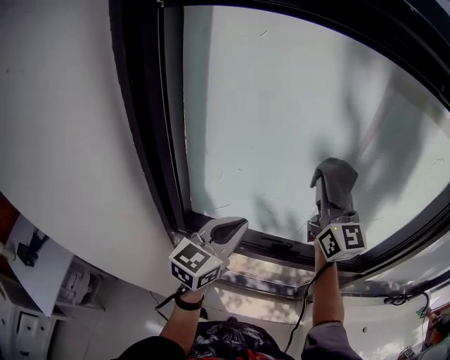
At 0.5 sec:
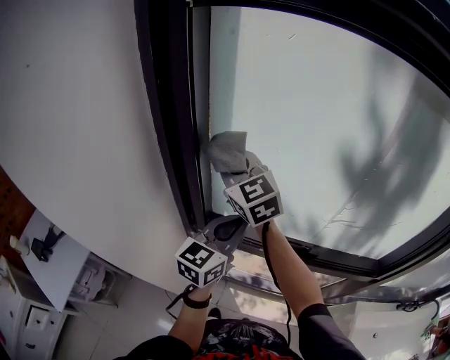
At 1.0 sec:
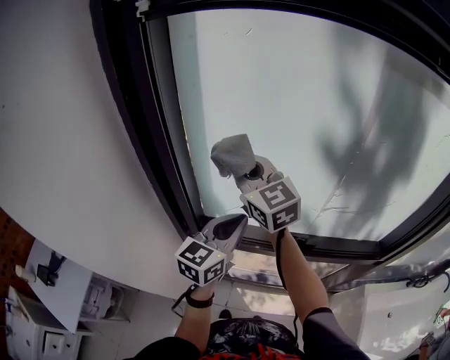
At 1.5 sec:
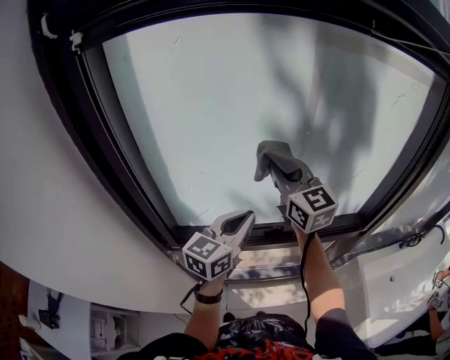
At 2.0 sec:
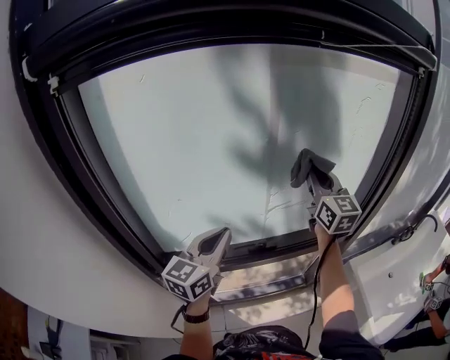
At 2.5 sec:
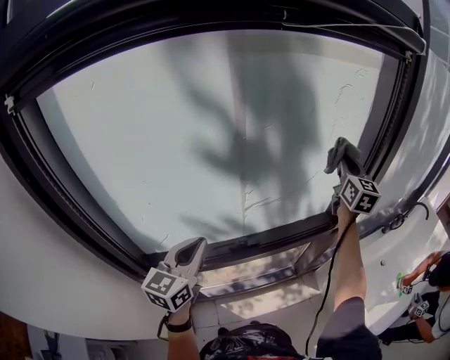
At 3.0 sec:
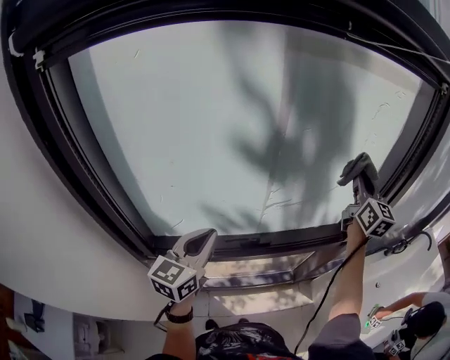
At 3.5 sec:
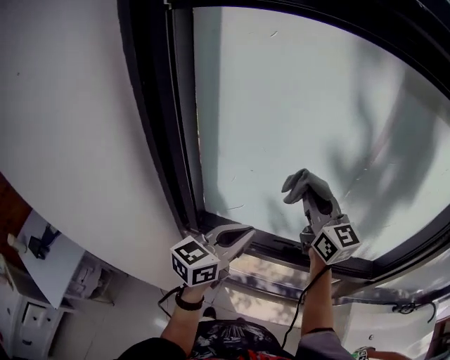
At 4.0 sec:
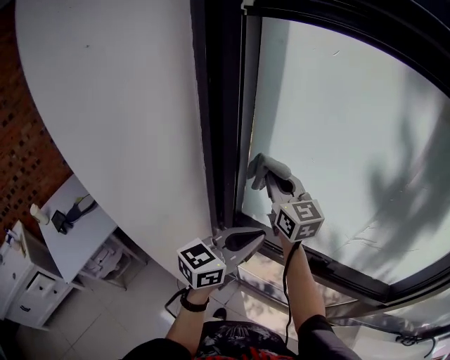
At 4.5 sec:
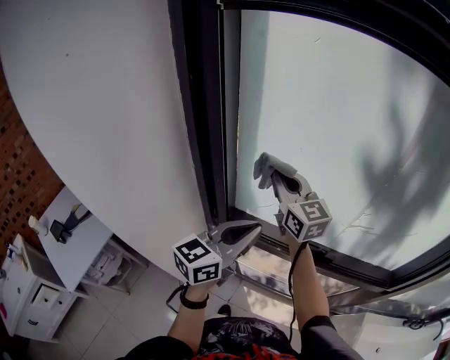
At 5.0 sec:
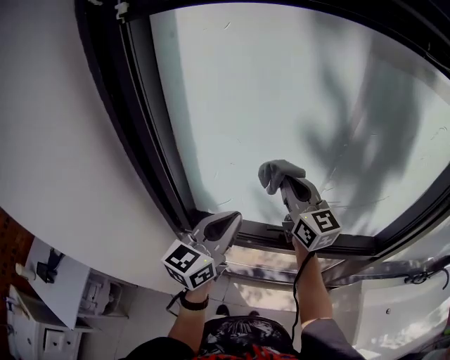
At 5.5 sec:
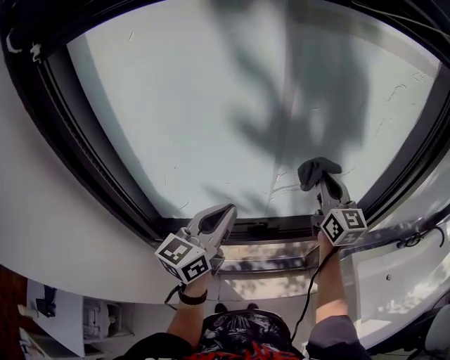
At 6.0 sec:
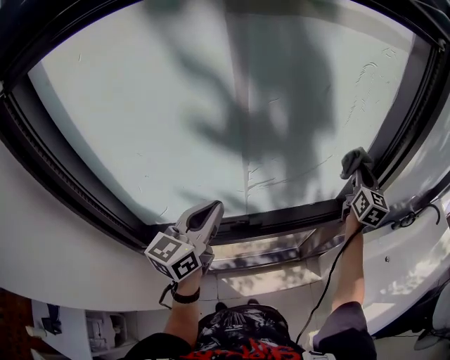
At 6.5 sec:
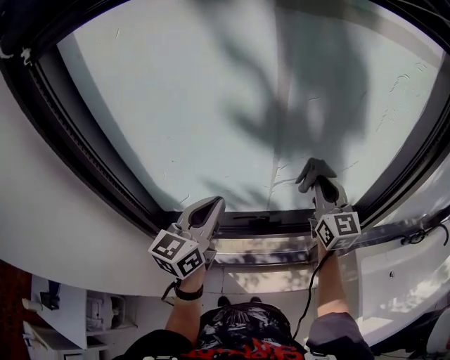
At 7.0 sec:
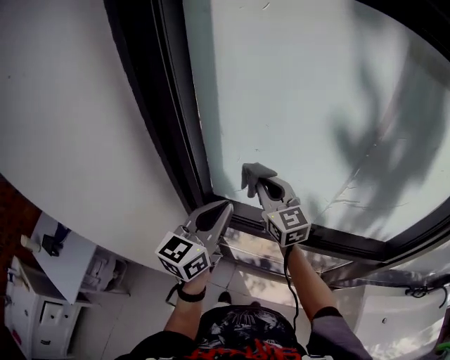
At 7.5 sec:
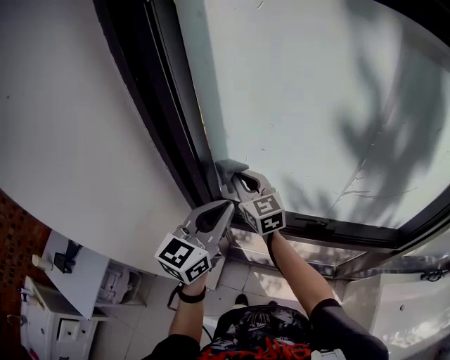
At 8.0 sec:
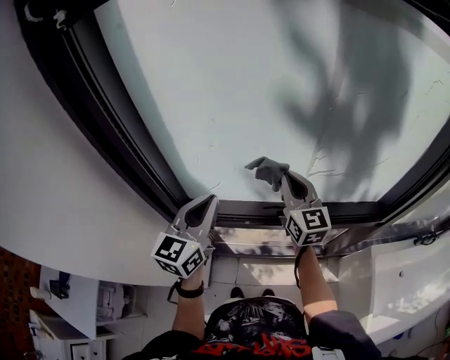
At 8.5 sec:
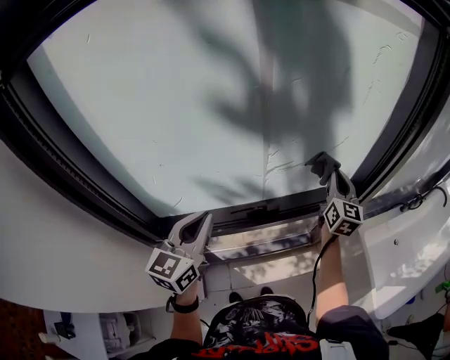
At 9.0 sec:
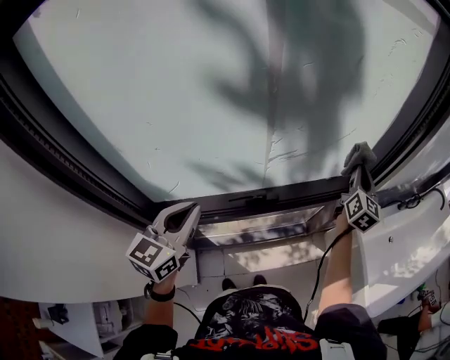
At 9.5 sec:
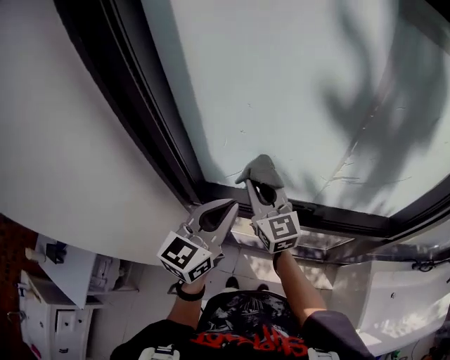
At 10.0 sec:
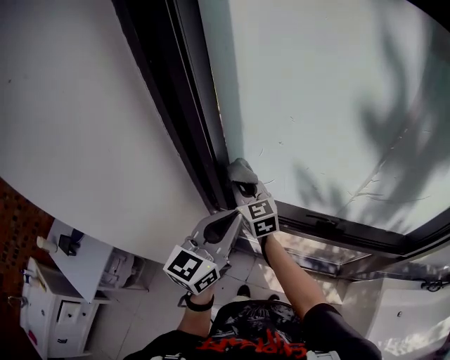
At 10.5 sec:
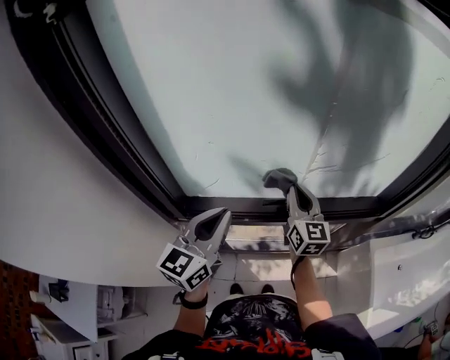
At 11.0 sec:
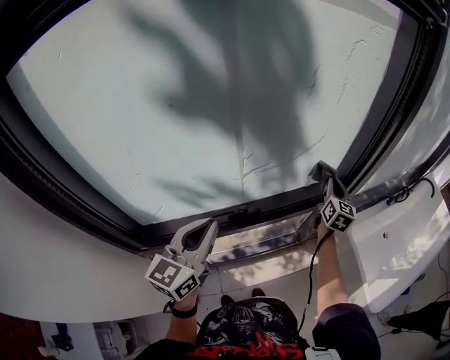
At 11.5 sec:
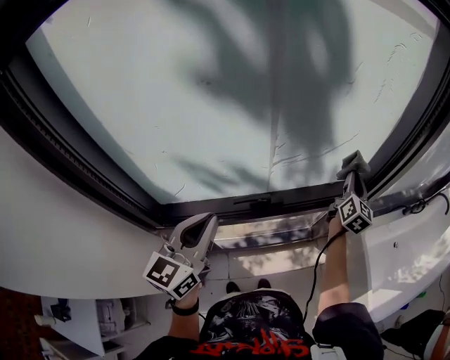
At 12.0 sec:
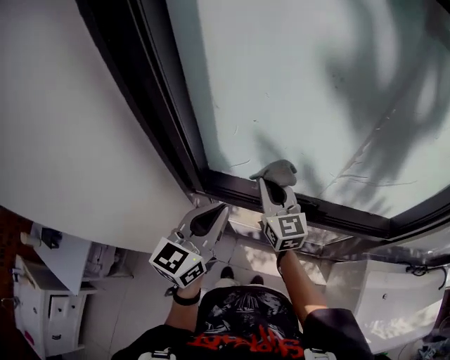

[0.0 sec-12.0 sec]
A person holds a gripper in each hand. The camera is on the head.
0.0 sec to 2.0 sec: The right gripper changes its angle by roughly 20 degrees; the left gripper changes place by some 5 cm.
2.0 sec to 4.0 sec: The left gripper changes place by some 15 cm. Meanwhile the right gripper shifts by about 40 cm, and turns by about 50 degrees.
4.0 sec to 6.0 sec: The right gripper ends up roughly 70 cm from where it was, and turns by approximately 70 degrees. The left gripper changes place by approximately 20 cm.
6.0 sec to 8.0 sec: The left gripper ends up some 15 cm from where it was, and swivels some 20 degrees, while the right gripper changes its angle by about 40 degrees.
8.0 sec to 10.0 sec: The left gripper changes place by about 10 cm, while the right gripper changes place by about 30 cm, and rotates roughly 30 degrees.

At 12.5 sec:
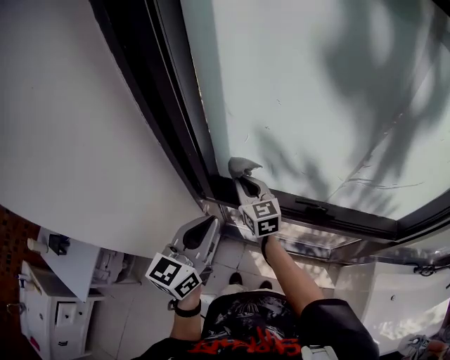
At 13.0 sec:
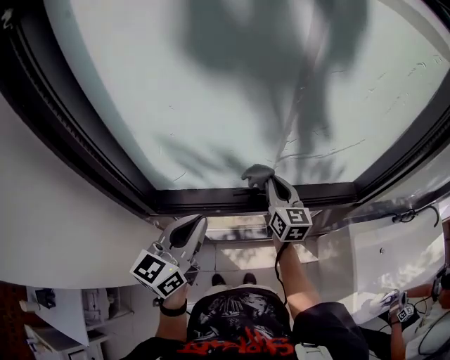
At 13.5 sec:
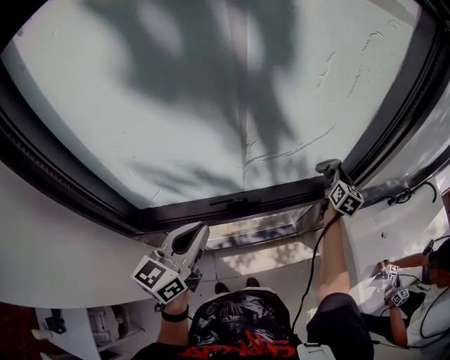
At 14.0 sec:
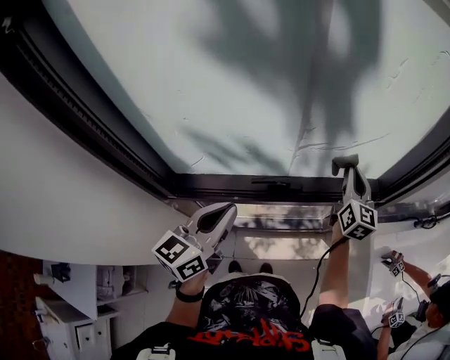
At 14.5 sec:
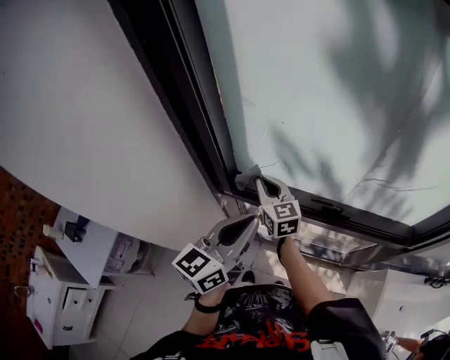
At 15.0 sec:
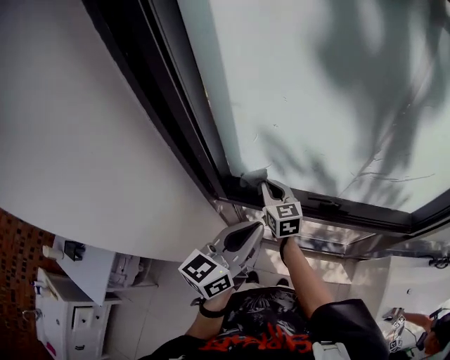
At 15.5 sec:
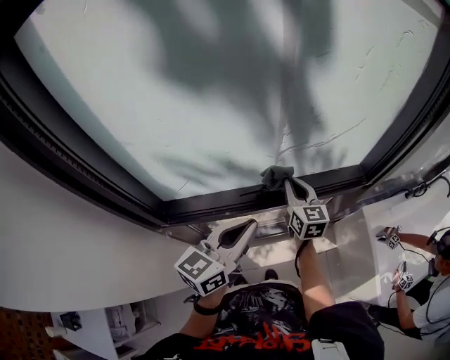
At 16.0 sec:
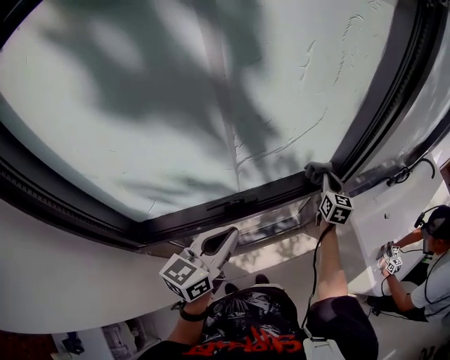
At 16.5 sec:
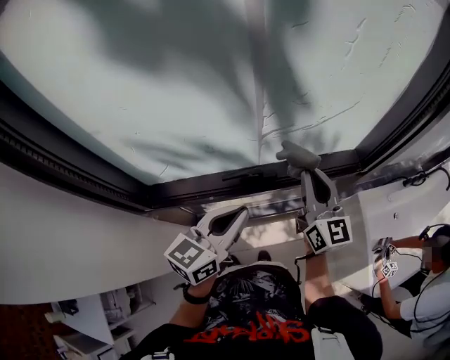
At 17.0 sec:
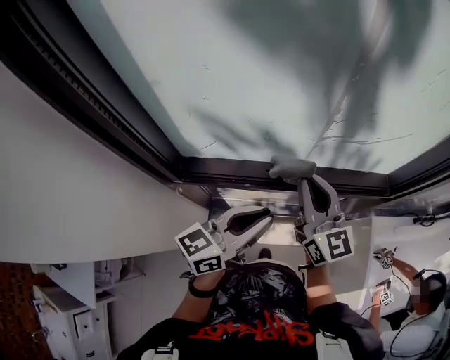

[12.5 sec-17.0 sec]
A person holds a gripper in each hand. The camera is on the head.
12.5 sec to 14.5 sec: The right gripper moves about 5 cm upward and comes back.
14.5 sec to 17.0 sec: The right gripper changes its angle by approximately 30 degrees. Meanwhile the left gripper changes place by approximately 15 cm, and rotates some 30 degrees.

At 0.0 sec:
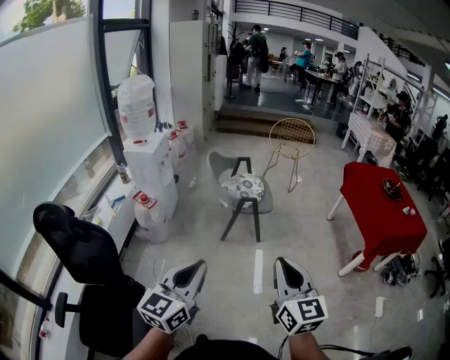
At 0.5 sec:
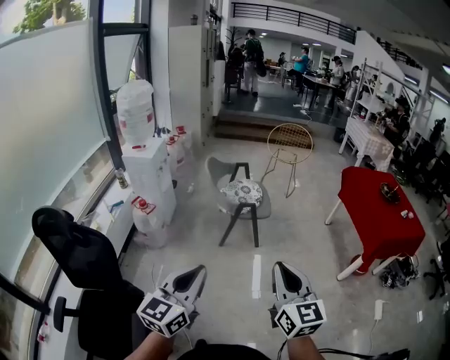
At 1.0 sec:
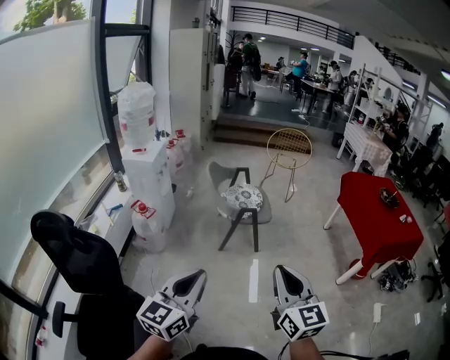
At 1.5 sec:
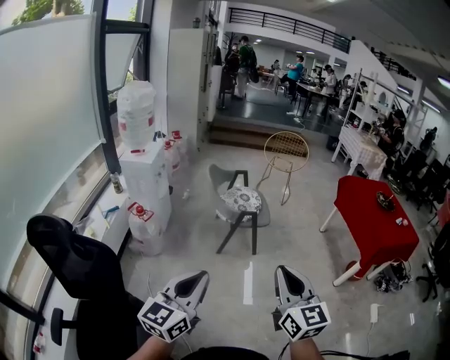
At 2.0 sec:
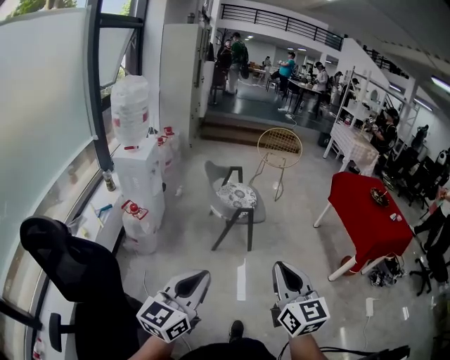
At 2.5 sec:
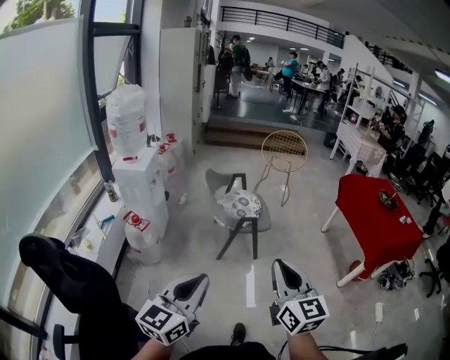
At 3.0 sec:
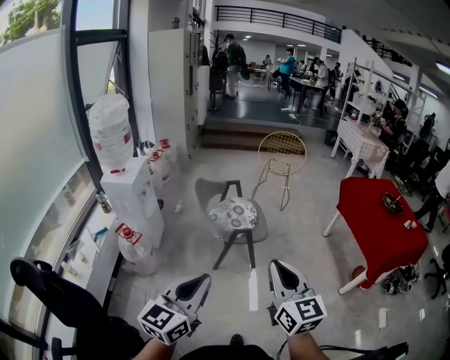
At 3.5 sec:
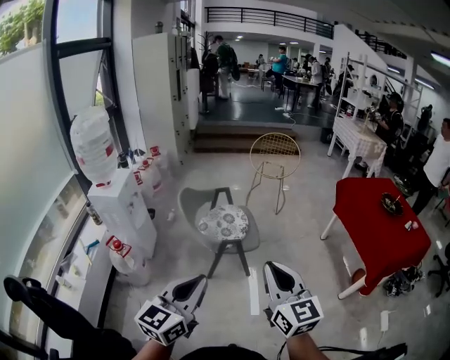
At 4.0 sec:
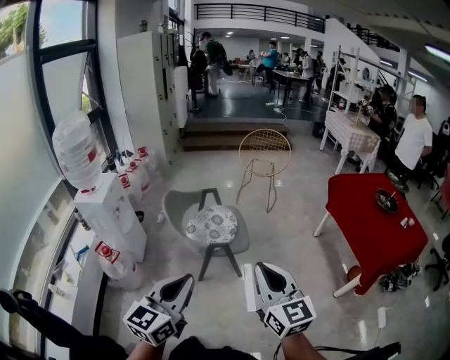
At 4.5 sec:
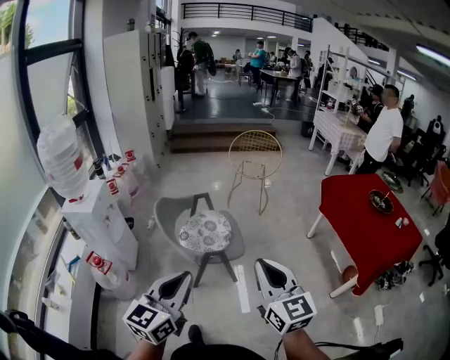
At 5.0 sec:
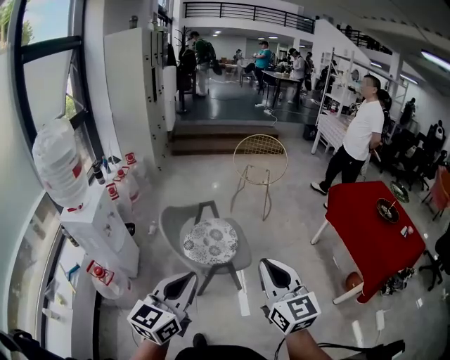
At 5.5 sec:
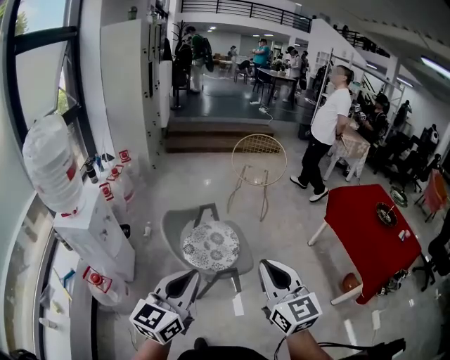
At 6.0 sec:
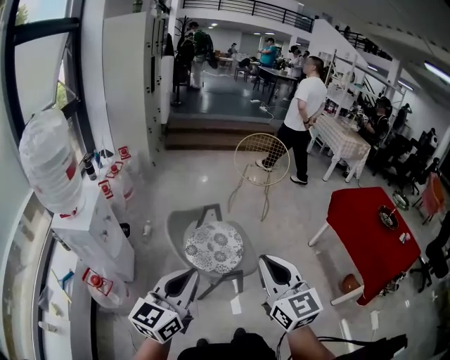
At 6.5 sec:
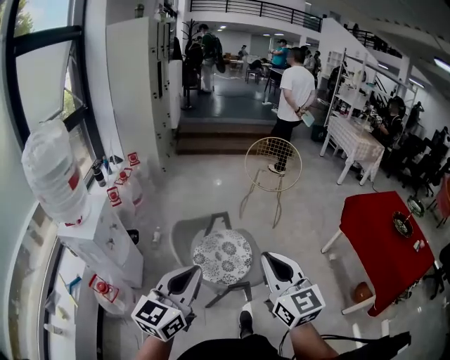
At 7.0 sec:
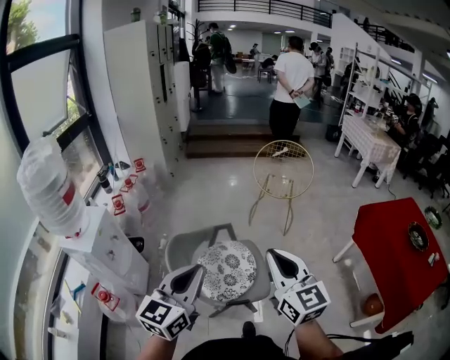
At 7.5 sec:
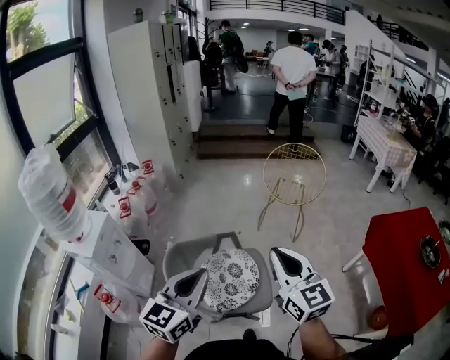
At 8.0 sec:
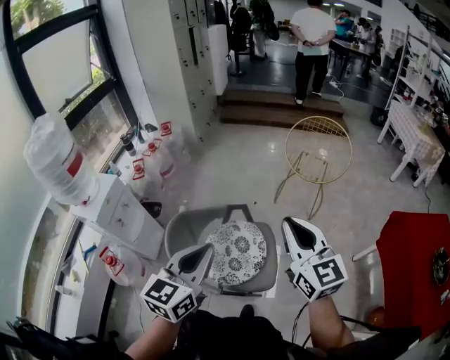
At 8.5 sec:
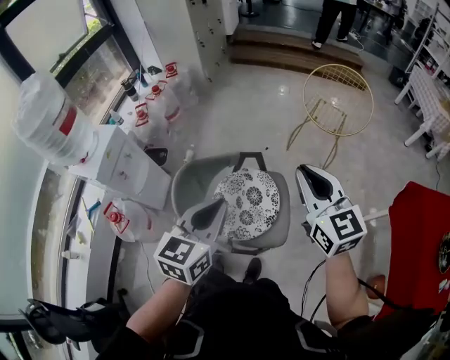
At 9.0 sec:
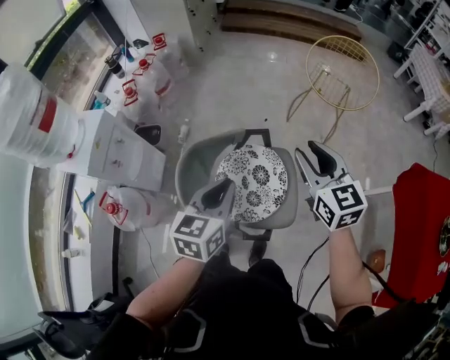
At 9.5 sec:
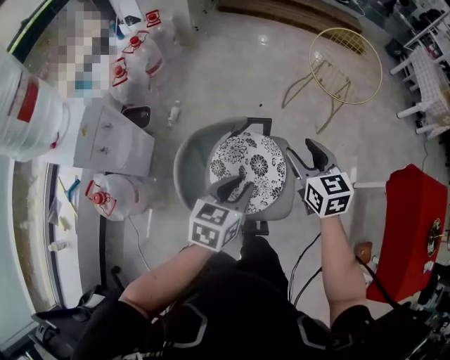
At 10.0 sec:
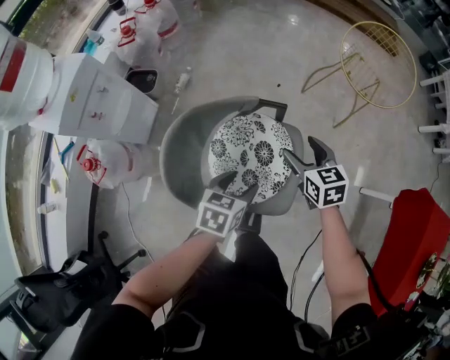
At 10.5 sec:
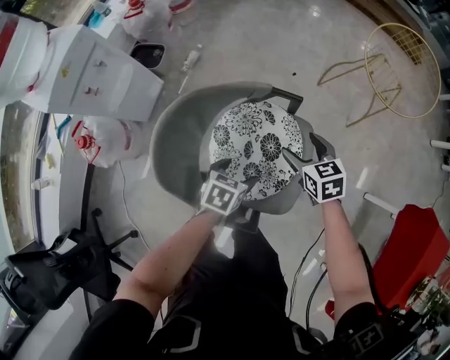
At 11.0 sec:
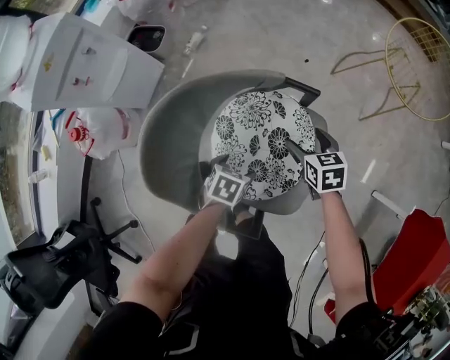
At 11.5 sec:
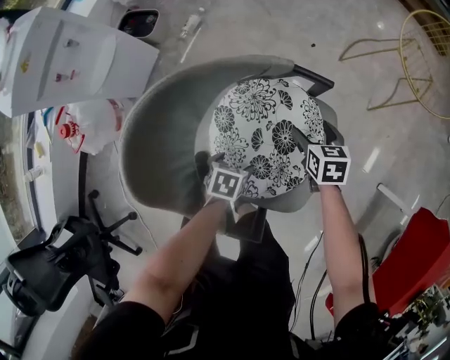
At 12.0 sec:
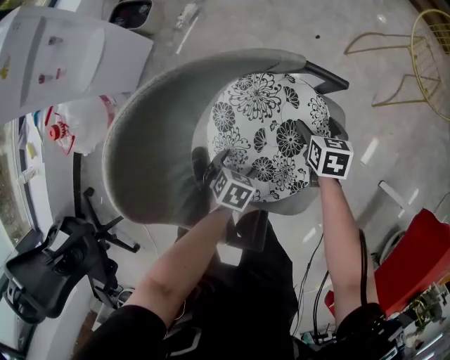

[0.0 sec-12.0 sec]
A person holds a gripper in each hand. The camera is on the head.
0.0 sec to 2.0 sec: Both grippers move to the left, roughly 10 cm.
2.0 sec to 4.0 sec: The grippers both shift forward and to the right by roughly 35 cm.
4.0 sec to 6.0 sec: Both grippers move forward and to the left, approximately 30 cm.
6.0 sec to 8.0 sec: The grippers both shift forward and to the right by about 30 cm. The left gripper turns by some 20 degrees.
8.0 sec to 10.0 sec: The right gripper travels downward and forward by approximately 40 cm, tips its fingers downward by about 40 degrees, and opens. The left gripper goes roughly 35 cm downward, tips its fingers downward by about 30 degrees, and opens its fingers.
10.0 sec to 12.0 sec: The two grippers go approximately 30 cm downward. The right gripper rotates some 20 degrees; the left gripper changes its angle by approximately 30 degrees, and opens its fingers.
